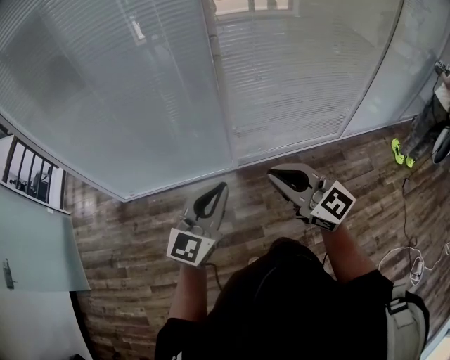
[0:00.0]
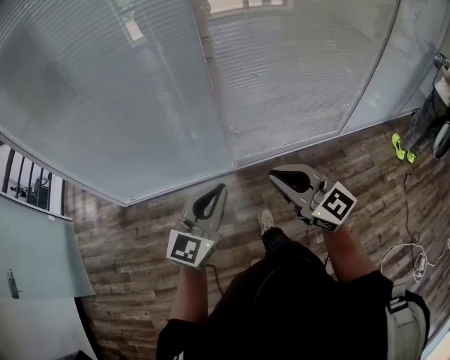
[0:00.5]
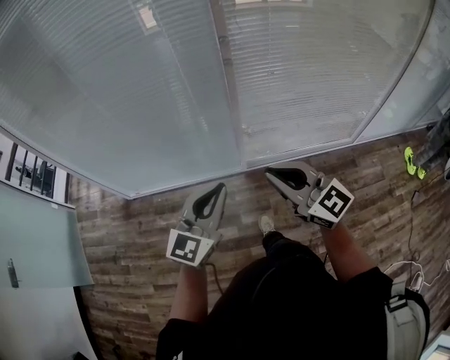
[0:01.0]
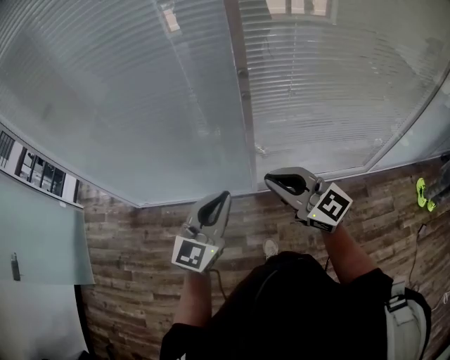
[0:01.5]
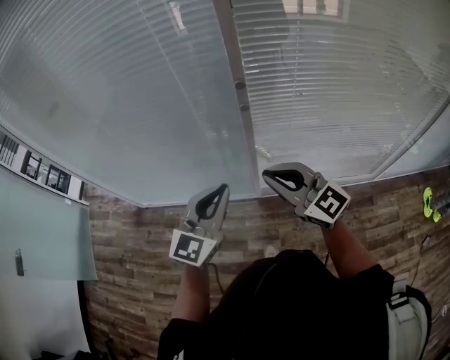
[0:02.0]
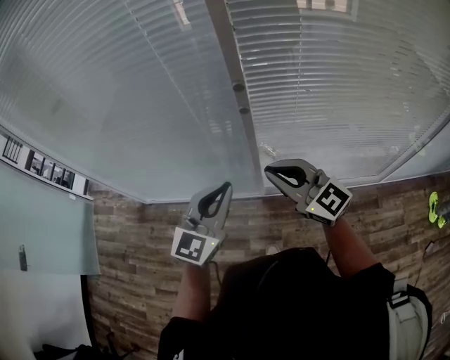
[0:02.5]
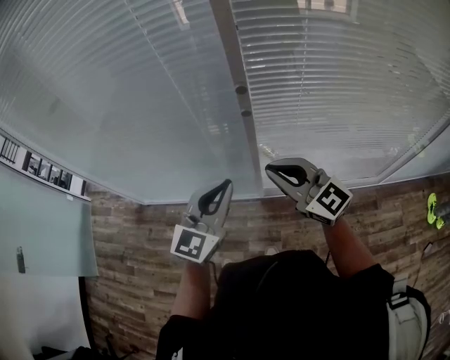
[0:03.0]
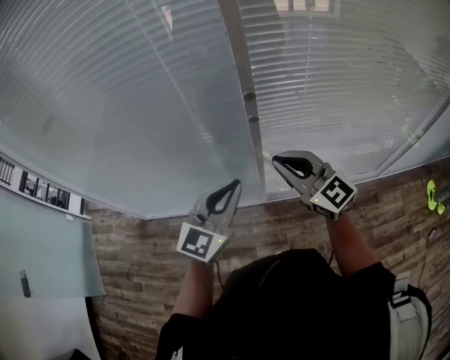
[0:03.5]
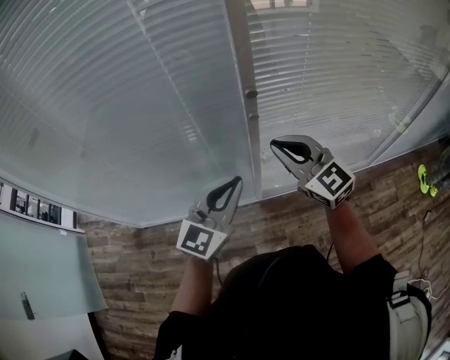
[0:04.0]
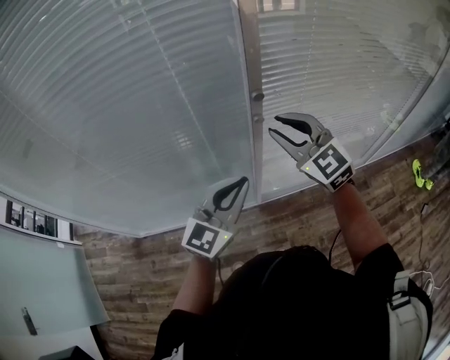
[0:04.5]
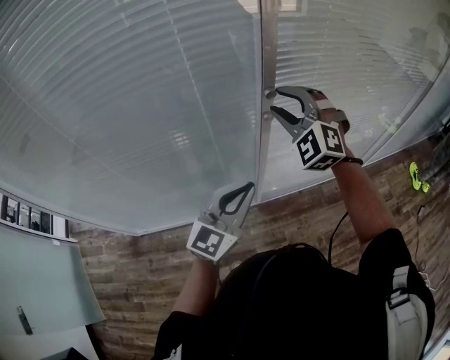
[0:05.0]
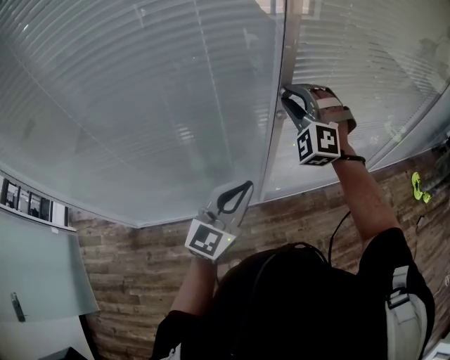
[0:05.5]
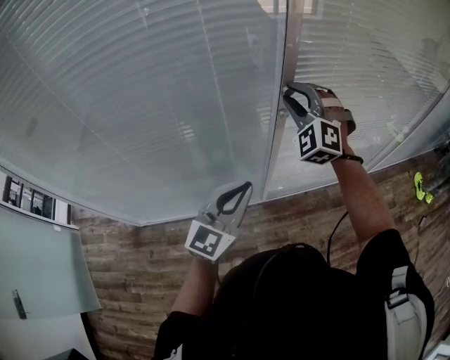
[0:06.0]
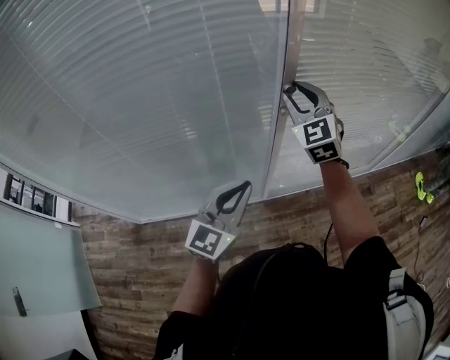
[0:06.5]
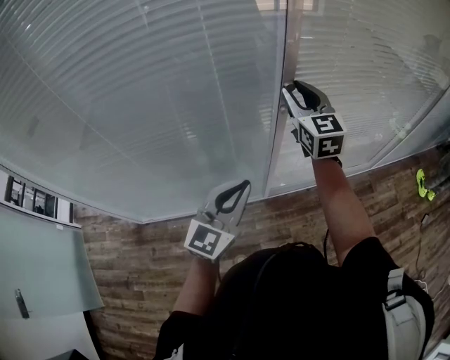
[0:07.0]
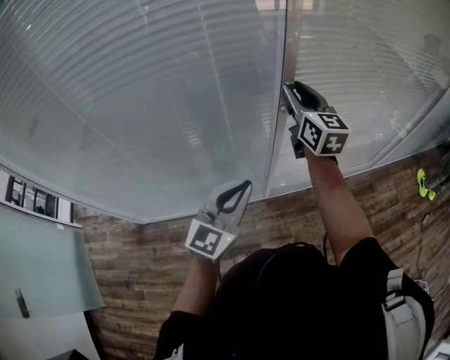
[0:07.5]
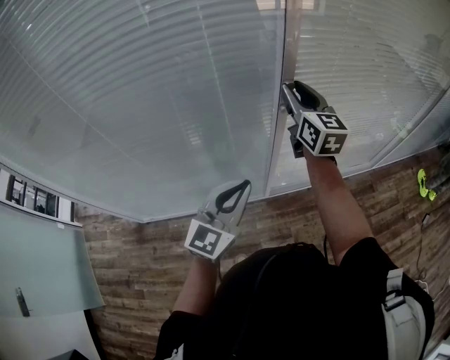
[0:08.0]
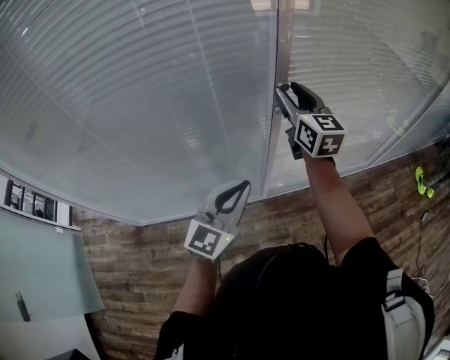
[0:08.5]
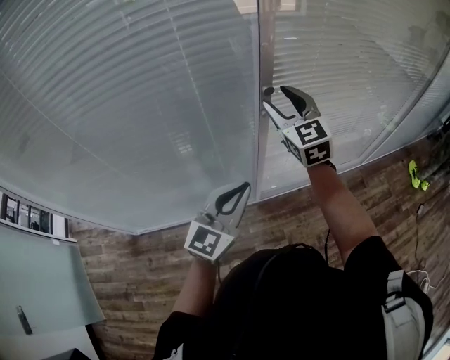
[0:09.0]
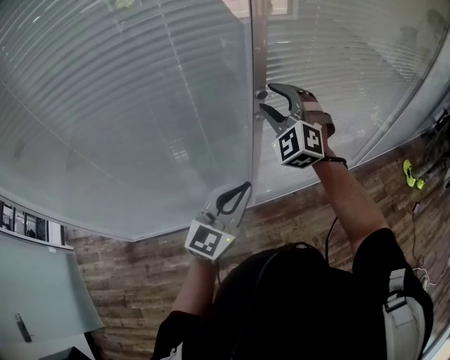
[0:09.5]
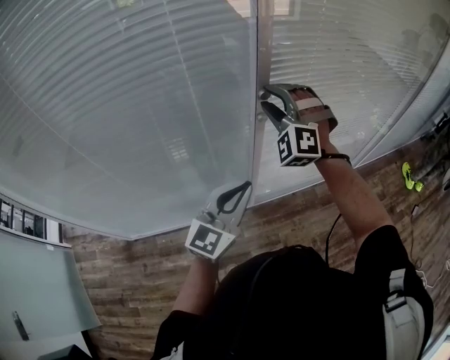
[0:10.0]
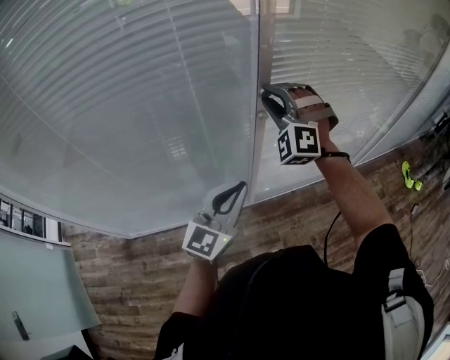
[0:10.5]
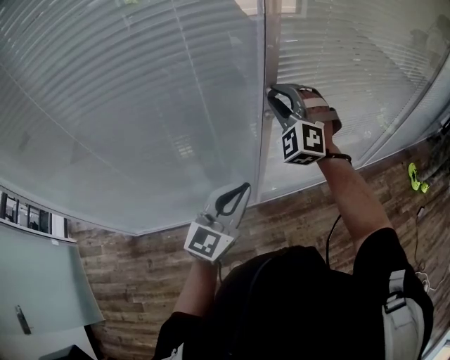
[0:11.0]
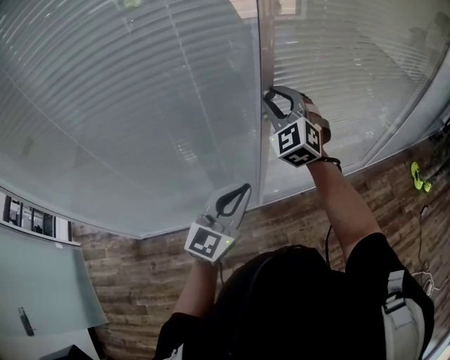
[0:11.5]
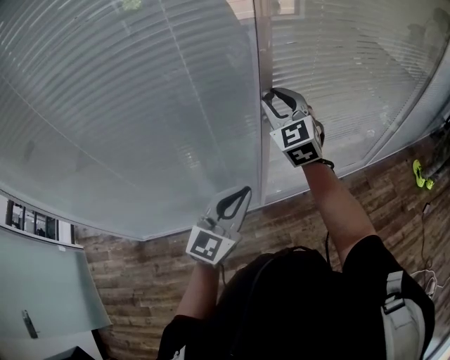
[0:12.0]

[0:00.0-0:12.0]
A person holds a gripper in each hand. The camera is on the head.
0:00.0 to 0:02.0: Both grippers travel together forward, approximately 25 cm.
0:02.0 to 0:04.0: The left gripper shifts about 5 cm forward. Meanwhile the right gripper is displaced forward by approximately 10 cm, and turns by approximately 20 degrees.
0:04.0 to 0:06.0: The right gripper travels forward and to the left by roughly 10 cm, rotates around the line of its fingers by some 50 degrees, counterclockwise from behind, and opens. Meanwhile the left gripper moves to the left, approximately 5 cm.
0:06.0 to 0:08.0: The right gripper twists roughly 80 degrees clockwise, seen from behind.
0:08.0 to 0:10.0: The right gripper twists some 80 degrees counterclockwise, seen from behind.
0:10.0 to 0:12.0: The right gripper twists about 50 degrees clockwise, seen from behind.

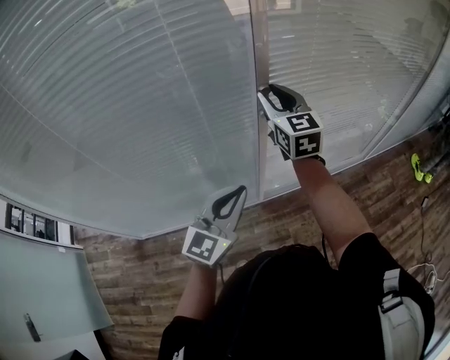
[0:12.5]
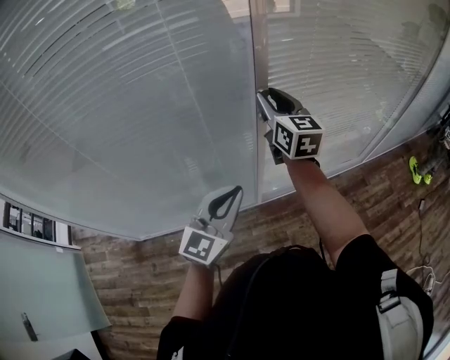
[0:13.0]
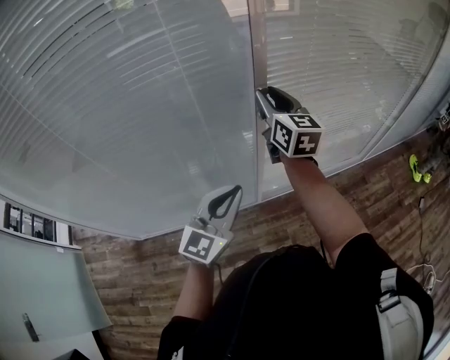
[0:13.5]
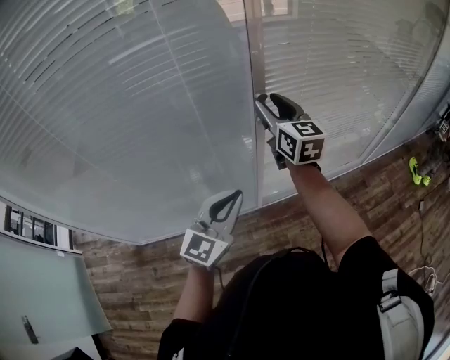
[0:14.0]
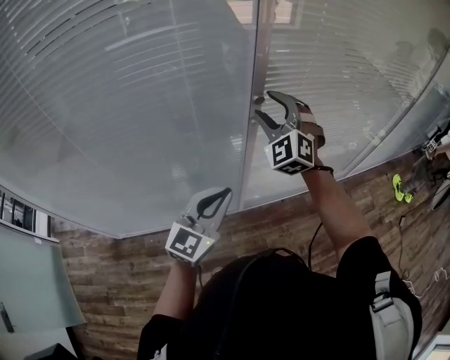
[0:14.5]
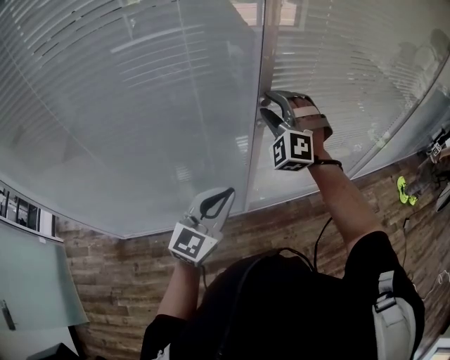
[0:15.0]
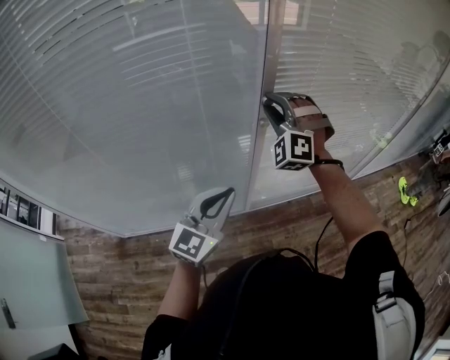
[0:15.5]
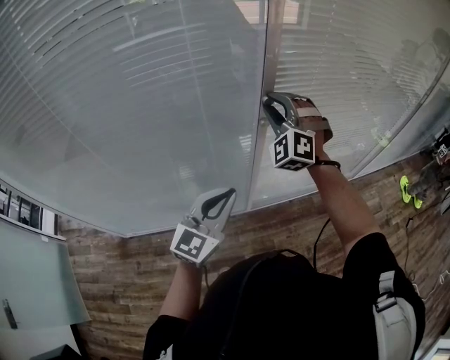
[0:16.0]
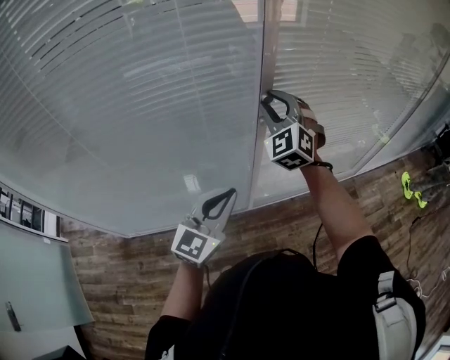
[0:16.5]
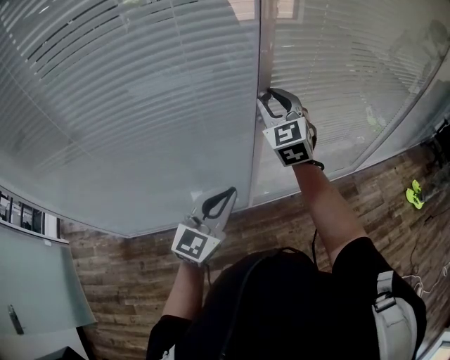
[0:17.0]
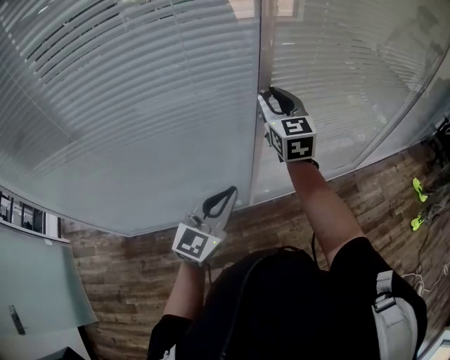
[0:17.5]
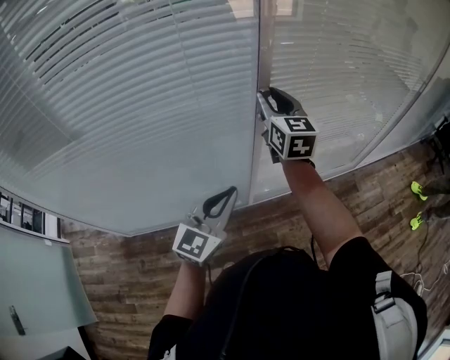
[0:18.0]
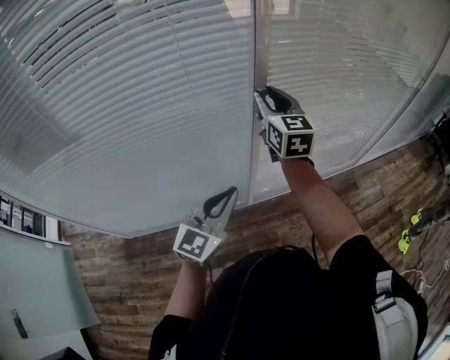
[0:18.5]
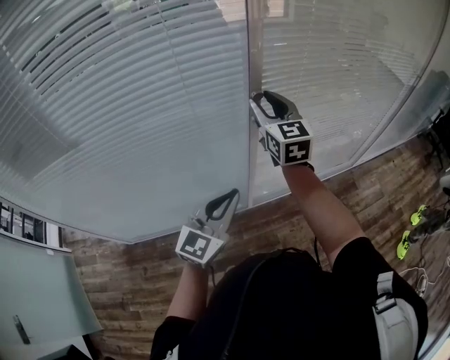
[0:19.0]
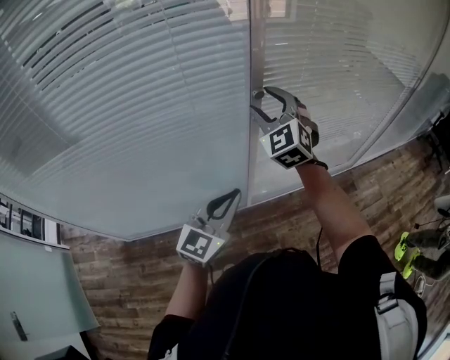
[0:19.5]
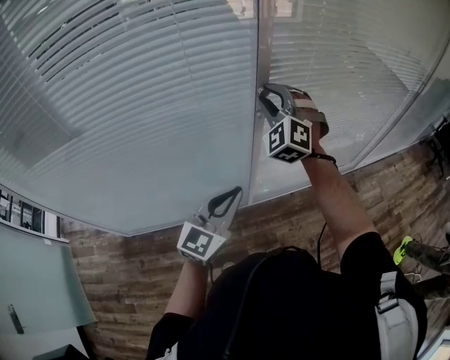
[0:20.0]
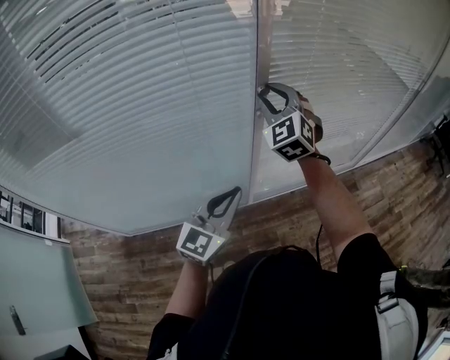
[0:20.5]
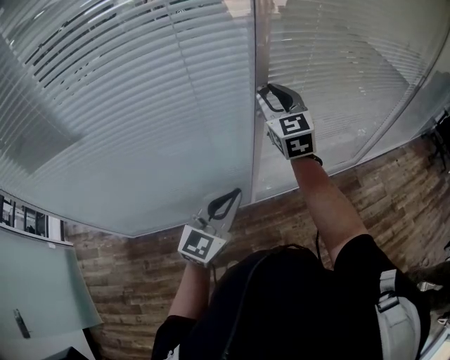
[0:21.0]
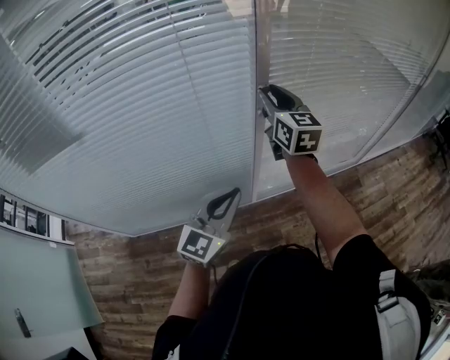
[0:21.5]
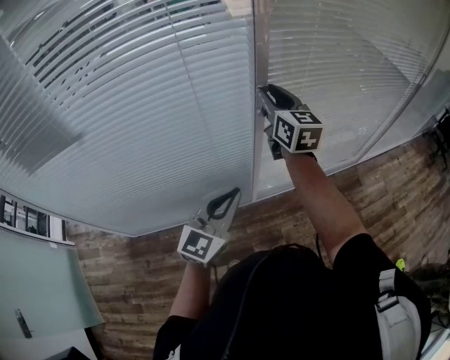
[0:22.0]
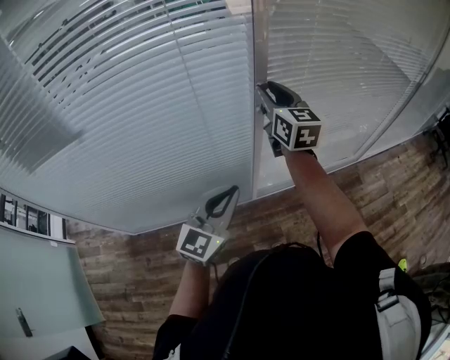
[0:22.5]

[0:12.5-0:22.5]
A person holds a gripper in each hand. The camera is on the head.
0:12.5 to 0:14.5: The right gripper rotates around the line of its fingers by roughly 60 degrees, counterclockwise from behind, and opens up.
0:14.5 to 0:16.5: The right gripper closes its fingers.
0:16.5 to 0:18.5: The right gripper rolls clockwise, seen from behind, by approximately 50 degrees.
0:18.5 to 0:20.5: The right gripper twists roughly 50 degrees counterclockwise, seen from behind, and opens, then closes again.
0:20.5 to 0:22.5: The right gripper twists roughly 50 degrees clockwise, seen from behind.

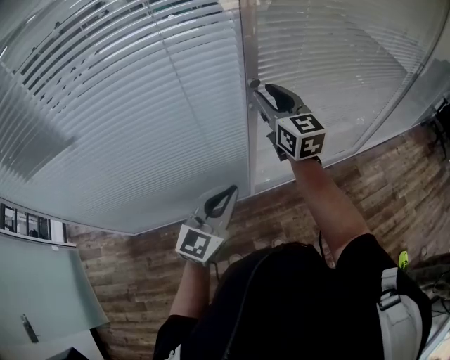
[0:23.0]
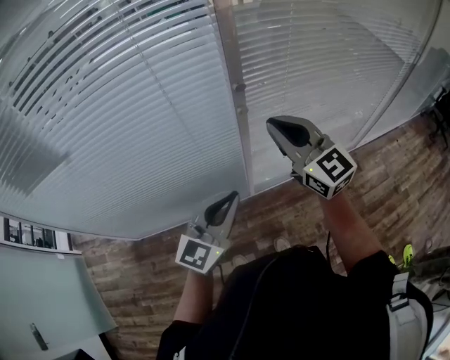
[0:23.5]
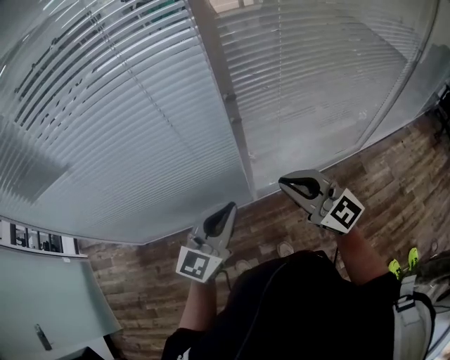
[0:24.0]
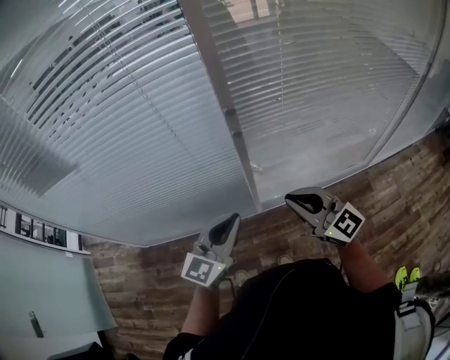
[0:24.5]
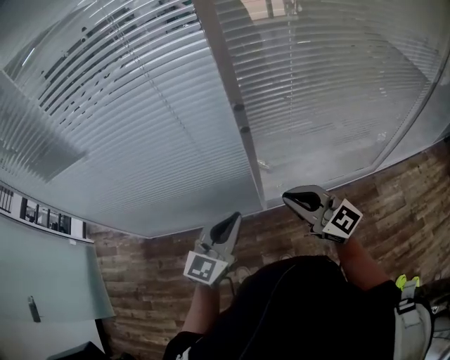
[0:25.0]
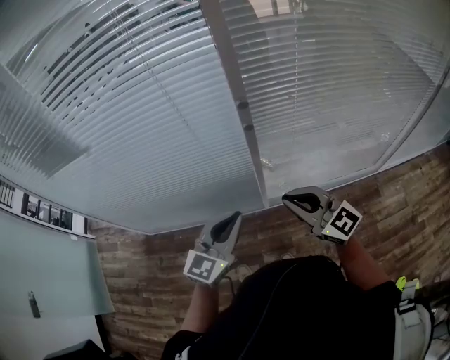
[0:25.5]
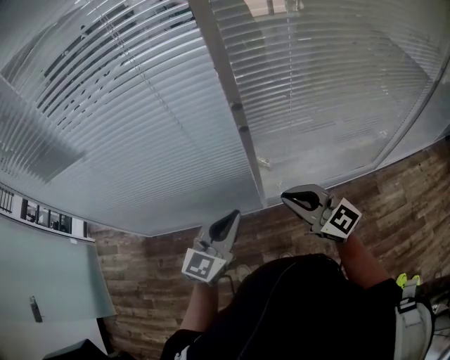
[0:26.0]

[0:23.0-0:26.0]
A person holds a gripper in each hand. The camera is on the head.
0:23.0 to 0:24.5: The right gripper moves backward and downward, about 20 cm, changes its angle by roughly 30 degrees, and closes its fingers, while the left gripper moves to the right, roughly 5 cm.
0:24.5 to 0:26.0: The grippers make only small movements.

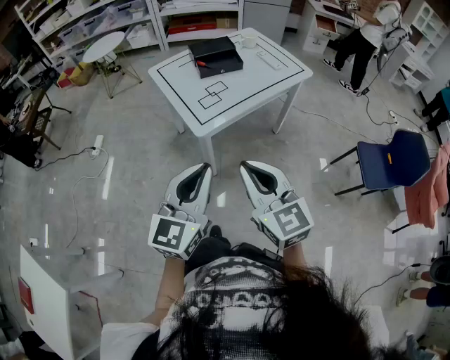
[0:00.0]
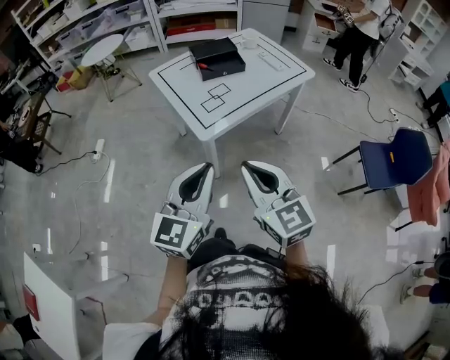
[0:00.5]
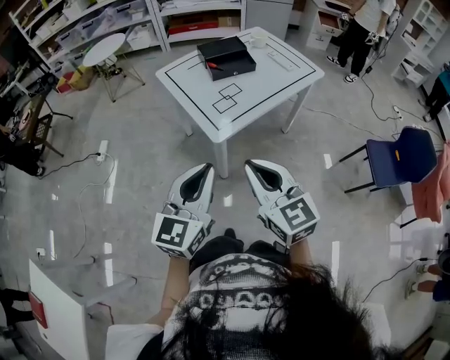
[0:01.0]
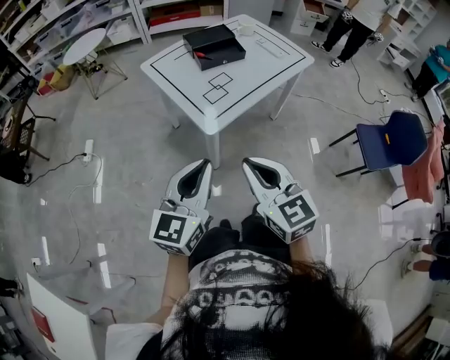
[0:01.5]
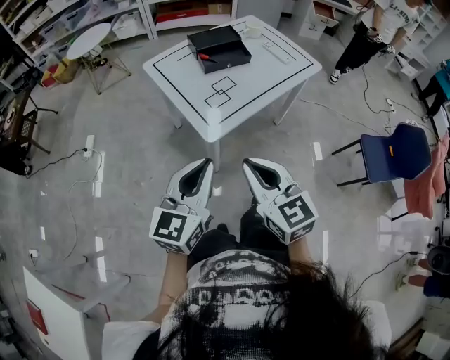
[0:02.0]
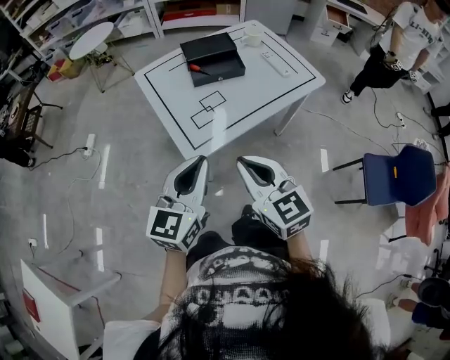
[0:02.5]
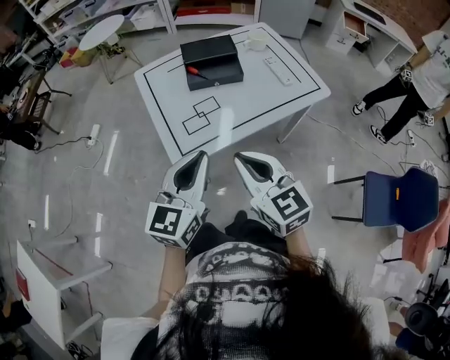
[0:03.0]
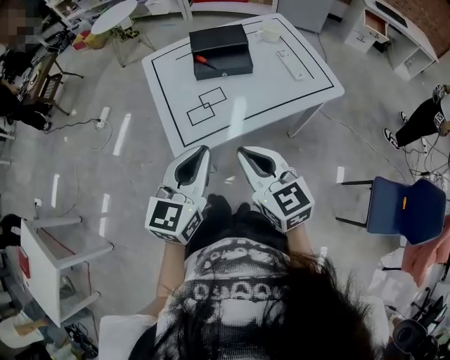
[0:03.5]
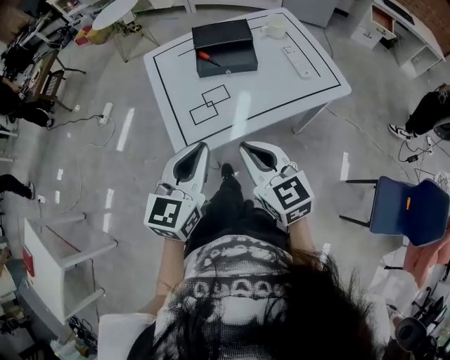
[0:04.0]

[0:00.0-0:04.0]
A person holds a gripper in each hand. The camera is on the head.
0:00.0 to 0:02.0: The two grippers go about 15 cm forward, to the left and downward.
0:02.0 to 0:04.0: The grippers both shift to the right and forward by roughly 30 cm.
